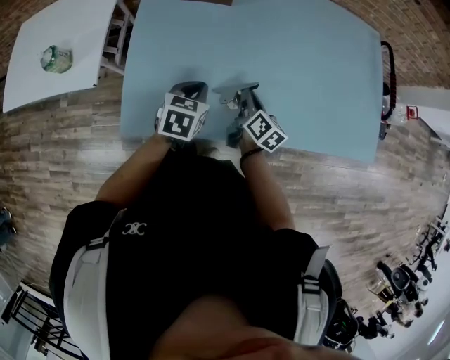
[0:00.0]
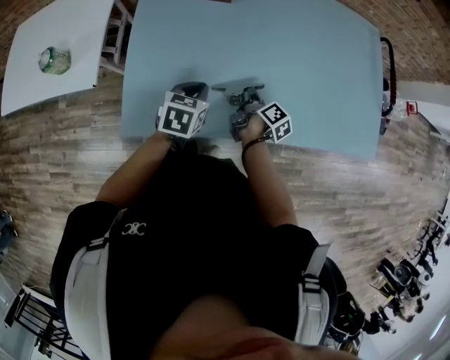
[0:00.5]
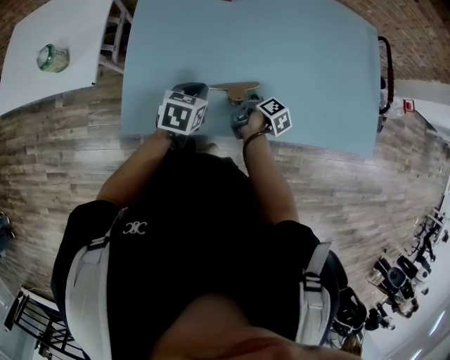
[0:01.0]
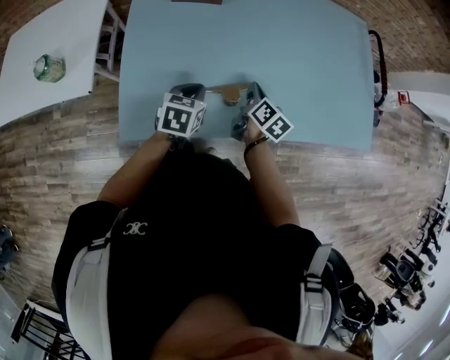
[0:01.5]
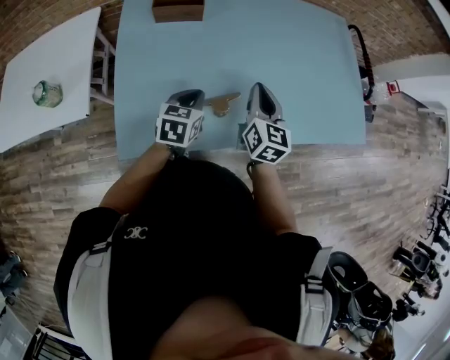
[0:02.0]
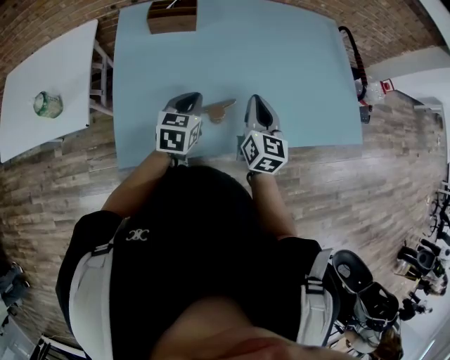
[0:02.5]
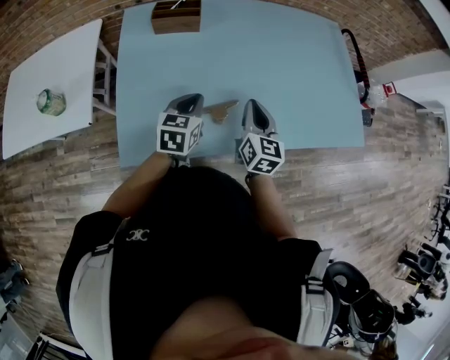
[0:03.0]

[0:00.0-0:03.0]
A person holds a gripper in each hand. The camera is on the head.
0:00.0 to 0:01.5: The right gripper goes downward and returns, about 10 cm each way.
0:01.5 to 0:03.0: The left gripper travels upward by roughly 5 cm; the right gripper goes approximately 10 cm upward, and swivels approximately 30 degrees.

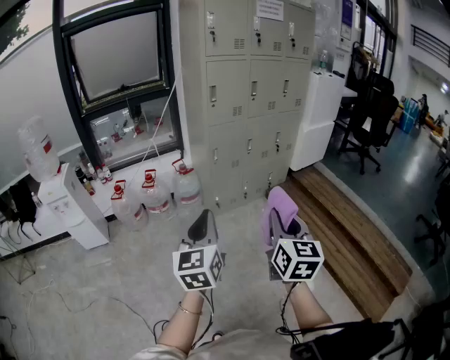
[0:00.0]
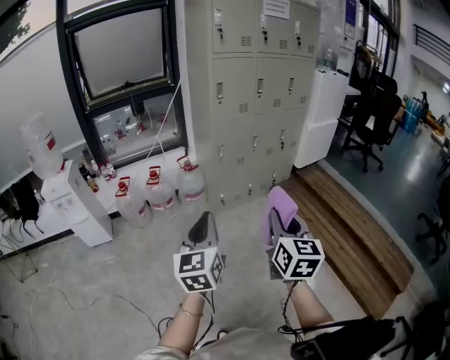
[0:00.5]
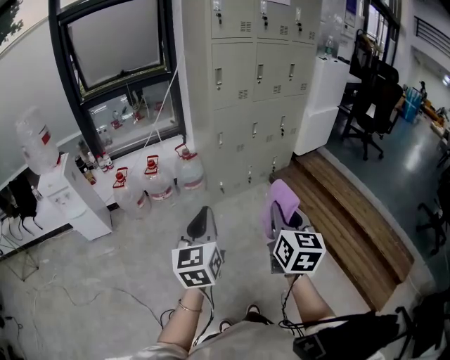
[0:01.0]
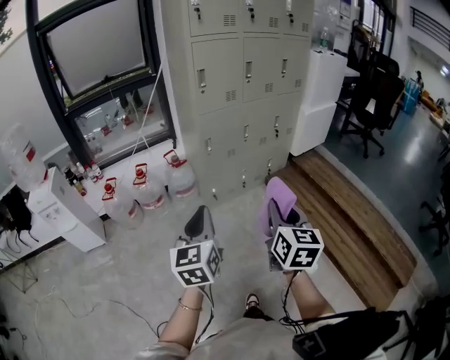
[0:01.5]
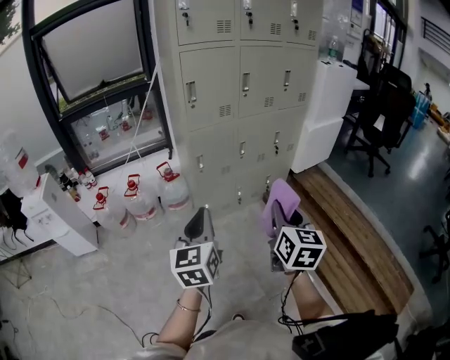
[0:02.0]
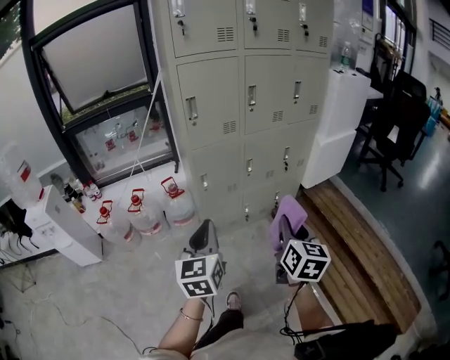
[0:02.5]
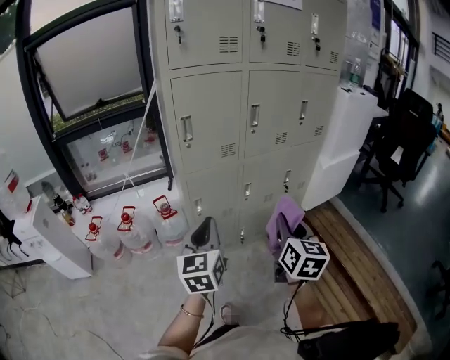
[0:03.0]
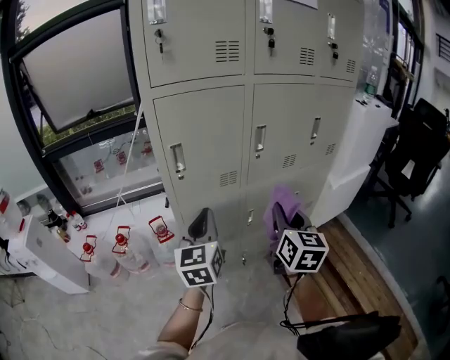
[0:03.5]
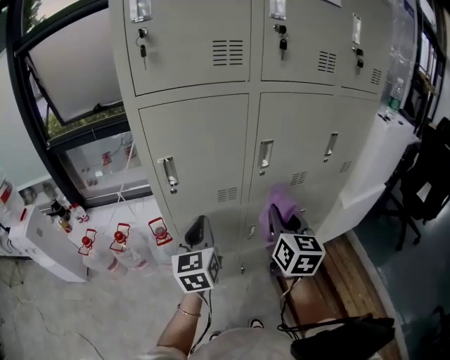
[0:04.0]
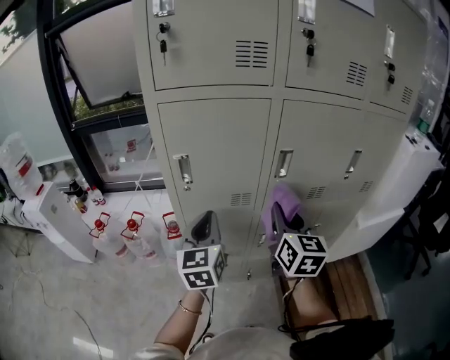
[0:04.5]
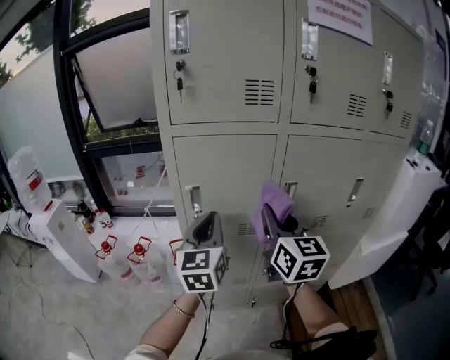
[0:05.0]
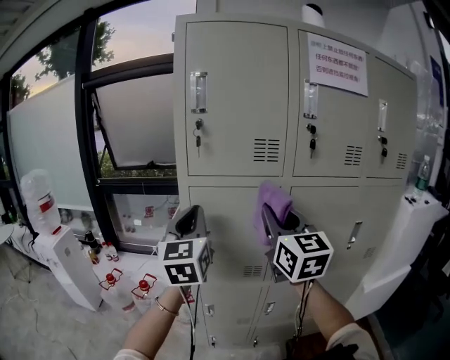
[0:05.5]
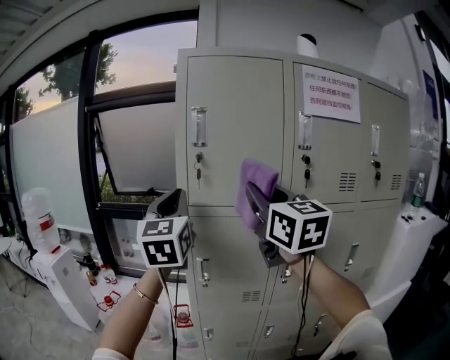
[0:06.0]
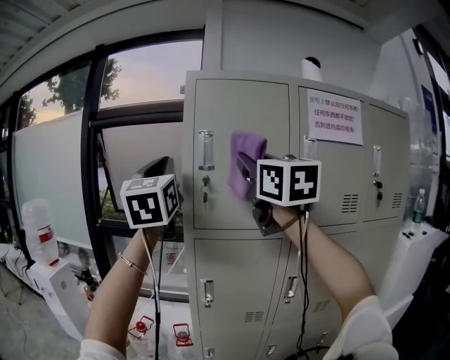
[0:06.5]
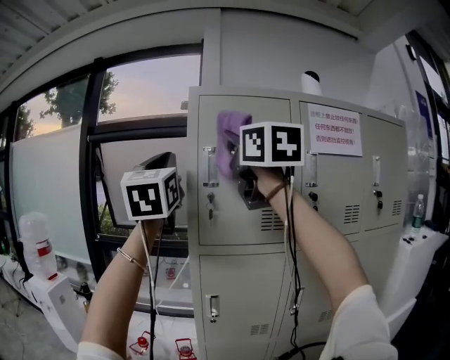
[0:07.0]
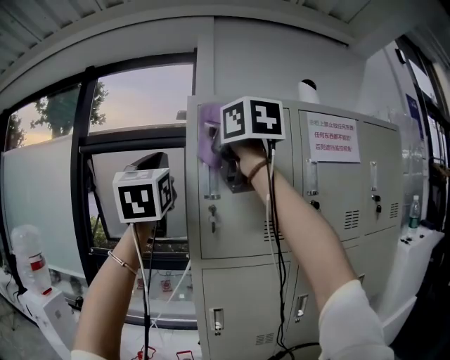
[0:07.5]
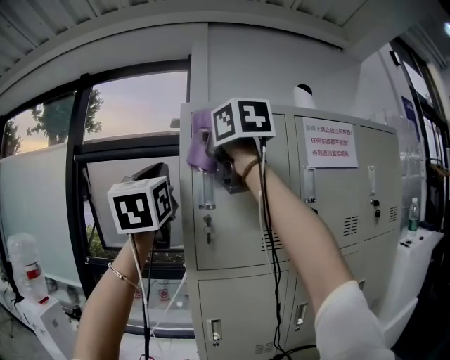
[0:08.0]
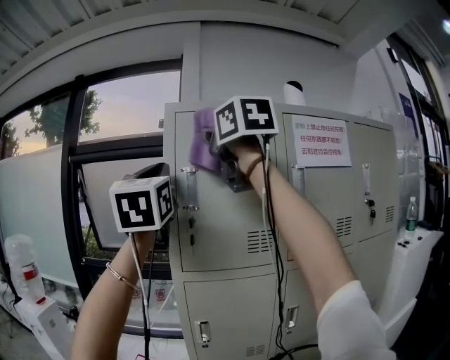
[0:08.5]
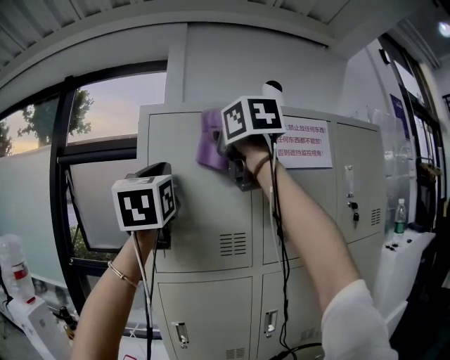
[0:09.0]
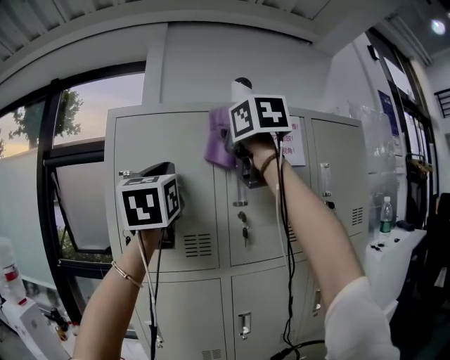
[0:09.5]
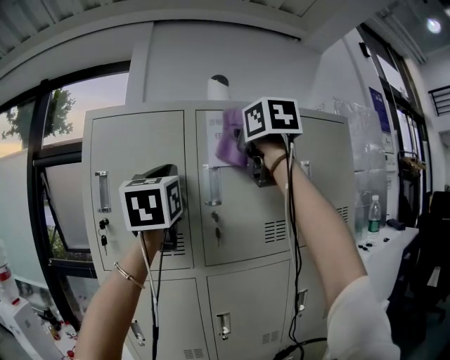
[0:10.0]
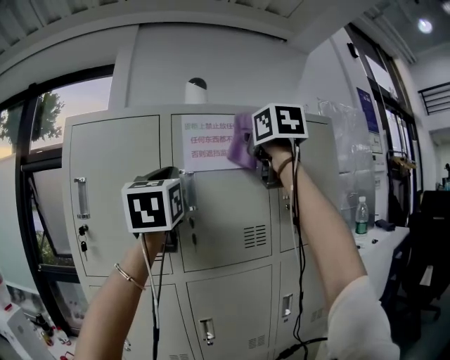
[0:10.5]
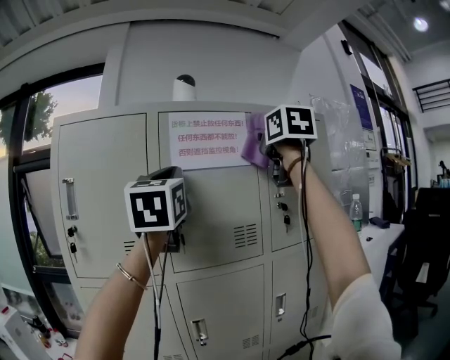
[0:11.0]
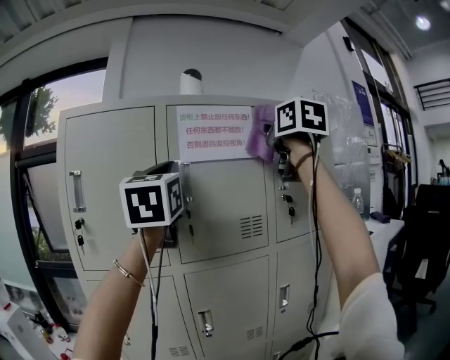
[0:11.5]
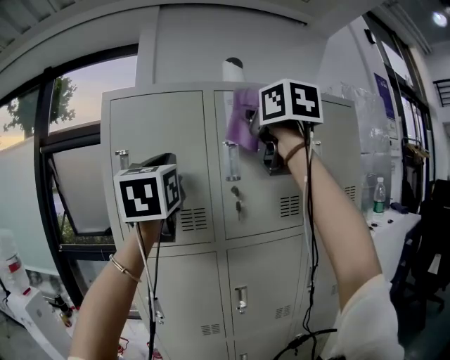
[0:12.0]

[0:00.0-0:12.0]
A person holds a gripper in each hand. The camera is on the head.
0:00.0 to 0:02.0: The right gripper is displaced forward and to the right by approximately 30 cm. The left gripper goes roughly 25 cm forward.
0:02.0 to 0:04.0: The two grippers travel together, forward, some 50 cm.
0:04.0 to 0:06.0: Both grippers travel together upward, roughly 35 cm. The right gripper changes its angle by approximately 40 degrees, while the left gripper swivels about 30 degrees.
0:06.0 to 0:08.0: The right gripper is displaced upward and to the left by approximately 30 cm; the left gripper goes approximately 20 cm upward.
0:08.0 to 0:10.0: Both grippers move to the right, roughly 30 cm.
0:10.0 to 0:12.0: The right gripper heads backward, covering about 5 cm, and reaches about 15 cm to the right, then returns. Meanwhile the left gripper moves approximately 10 cm to the right and comes back.

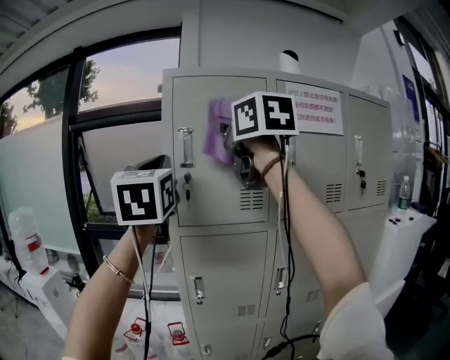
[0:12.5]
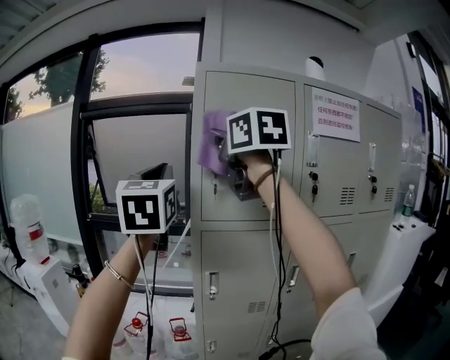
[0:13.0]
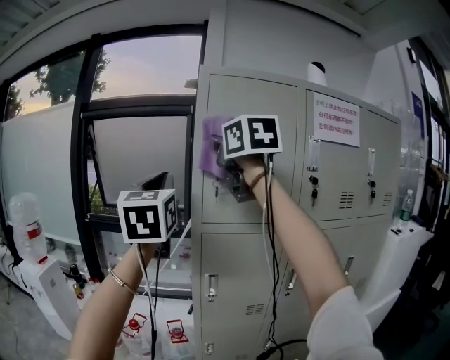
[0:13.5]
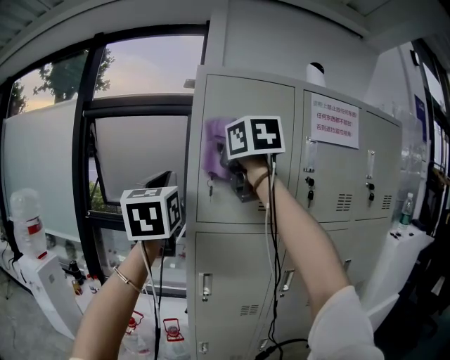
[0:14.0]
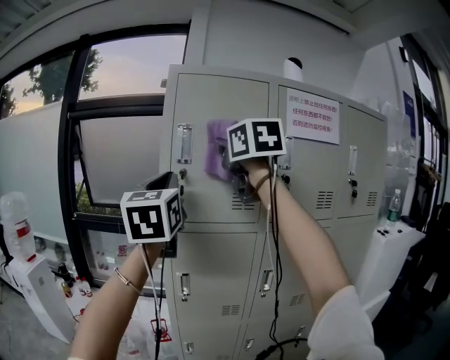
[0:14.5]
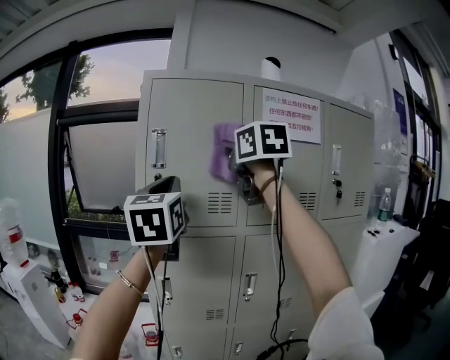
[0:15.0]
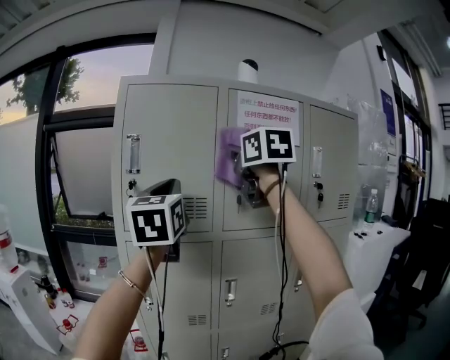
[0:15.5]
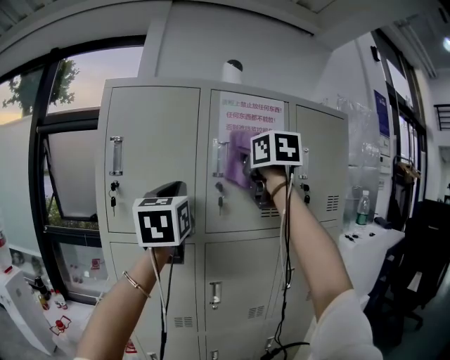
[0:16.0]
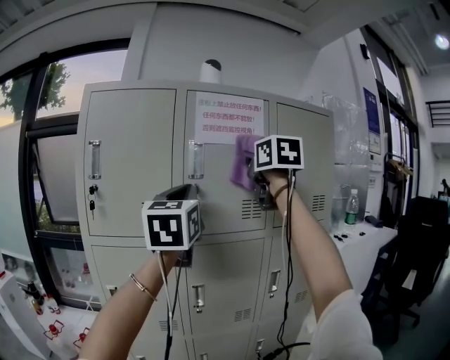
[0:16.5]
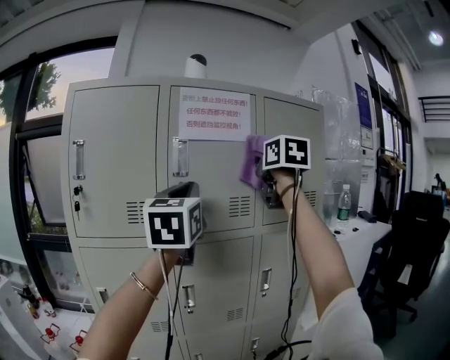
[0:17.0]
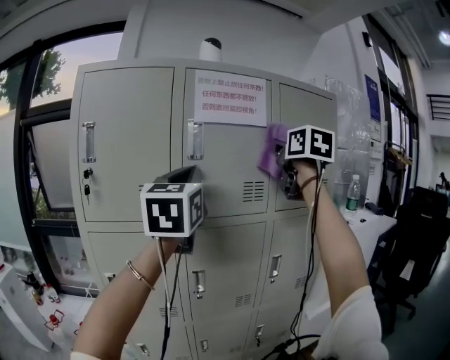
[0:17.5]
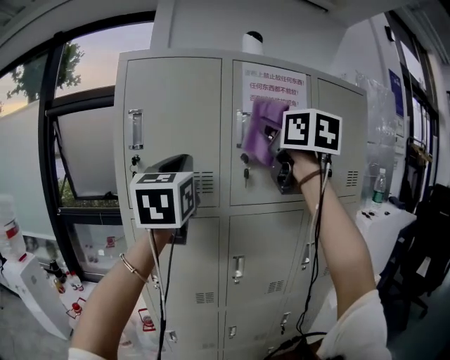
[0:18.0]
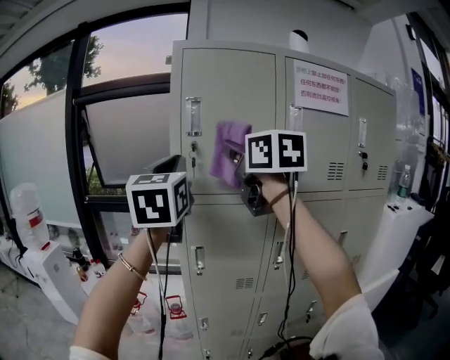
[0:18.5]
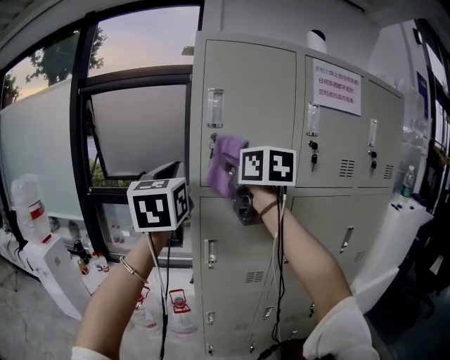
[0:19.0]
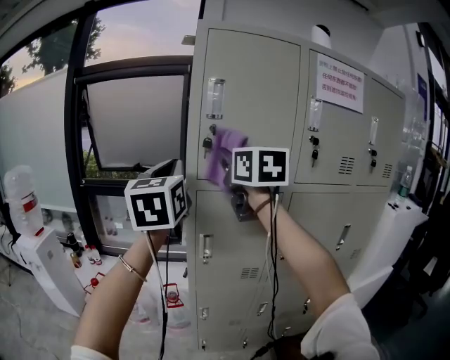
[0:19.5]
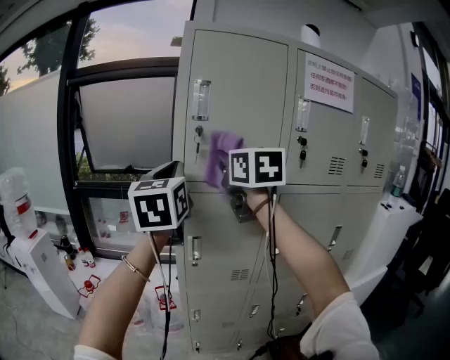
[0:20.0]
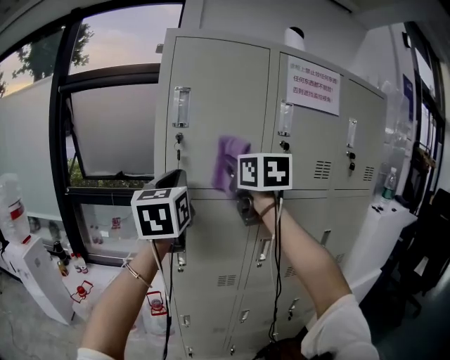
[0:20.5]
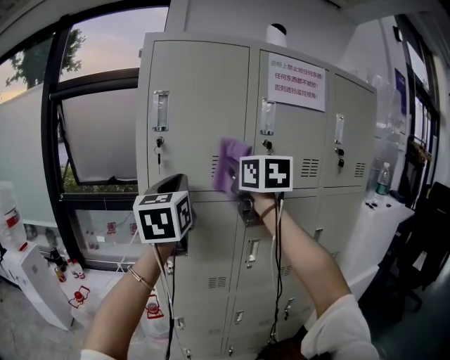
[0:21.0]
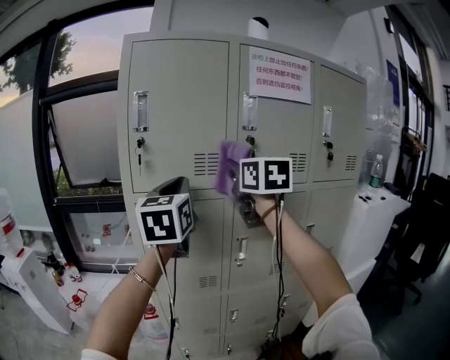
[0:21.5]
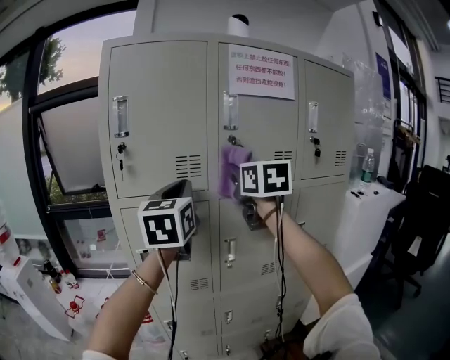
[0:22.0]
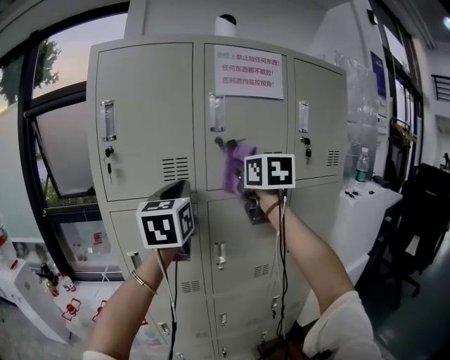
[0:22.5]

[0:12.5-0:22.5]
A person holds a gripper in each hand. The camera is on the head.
0:12.5 to 0:14.5: The left gripper goes to the left and returns, roughly 10 cm each way. The right gripper heads downward, covering some 5 cm, and goes to the left and returns, about 10 cm each way.
0:14.5 to 0:16.5: Both grippers move to the right, some 30 cm.
0:16.5 to 0:18.5: The two grippers go approximately 30 cm to the left. The right gripper swivels some 20 degrees.
0:18.5 to 0:20.5: The left gripper travels downward by roughly 5 cm. Meanwhile the right gripper is displaced downward and to the right by some 10 cm.
0:20.5 to 0:22.5: Both grippers travel together to the right, roughly 20 cm.

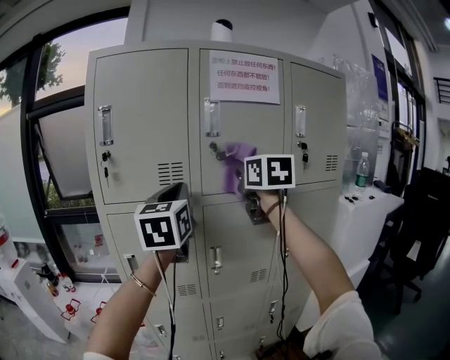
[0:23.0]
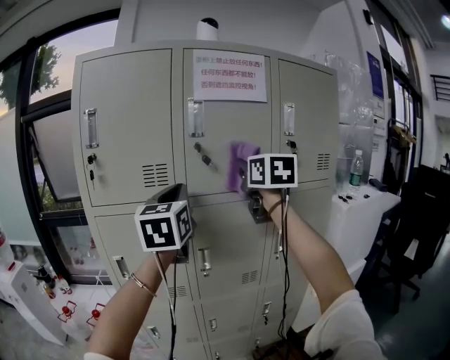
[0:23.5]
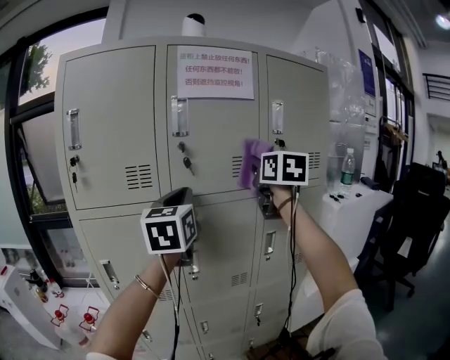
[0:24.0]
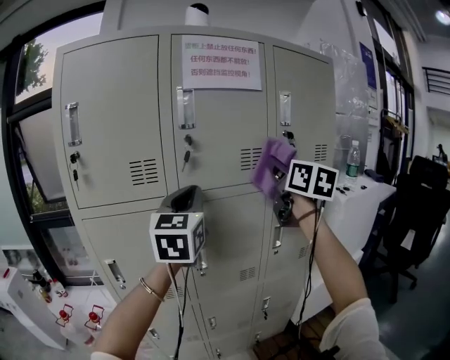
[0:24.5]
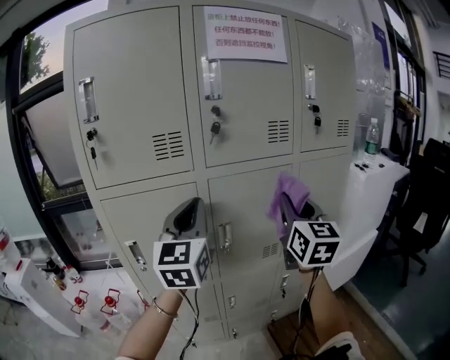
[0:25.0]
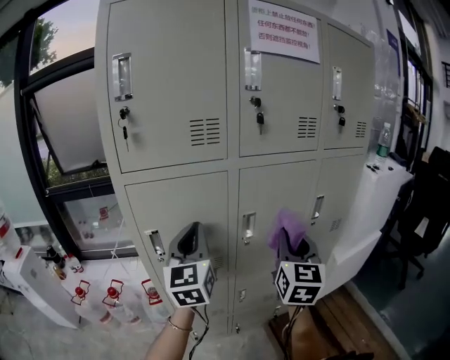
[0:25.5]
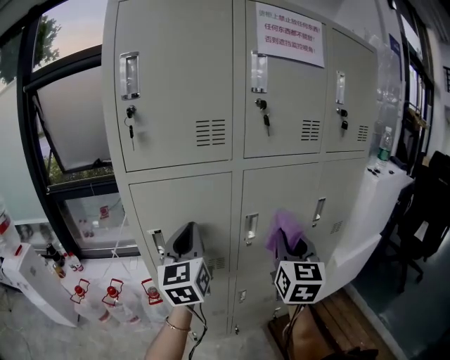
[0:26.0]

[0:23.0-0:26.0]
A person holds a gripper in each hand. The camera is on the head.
0:23.0 to 0:24.5: The right gripper is displaced to the right by roughly 15 cm; the left gripper is displaced to the right by some 10 cm.
0:24.5 to 0:26.0: The right gripper shifts approximately 30 cm downward, to the left and backward, and rotates some 20 degrees. The left gripper goes some 25 cm to the left and downward.
